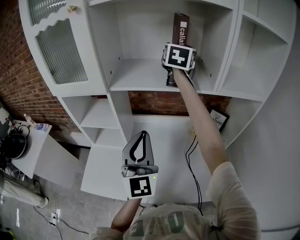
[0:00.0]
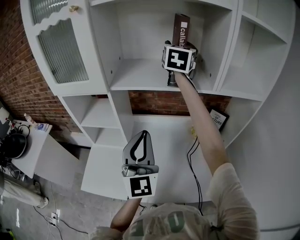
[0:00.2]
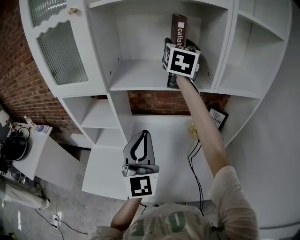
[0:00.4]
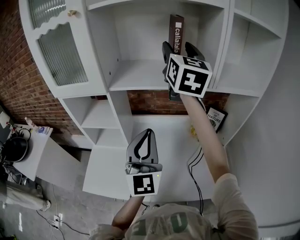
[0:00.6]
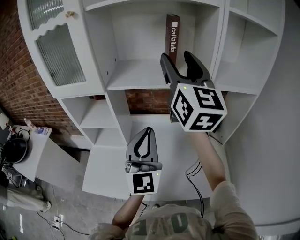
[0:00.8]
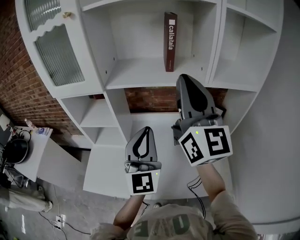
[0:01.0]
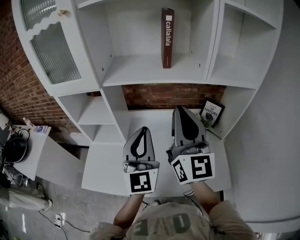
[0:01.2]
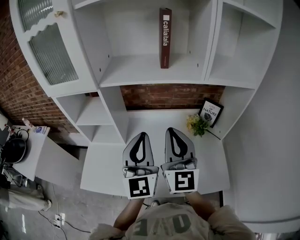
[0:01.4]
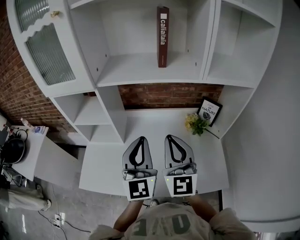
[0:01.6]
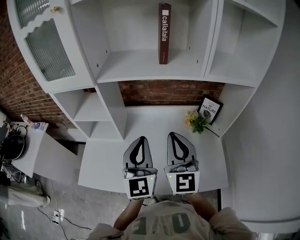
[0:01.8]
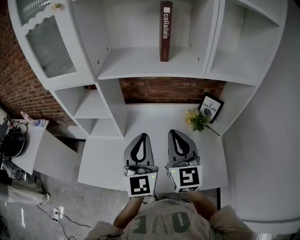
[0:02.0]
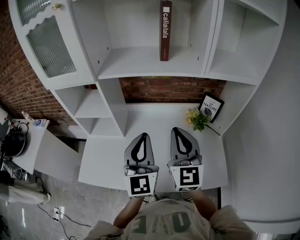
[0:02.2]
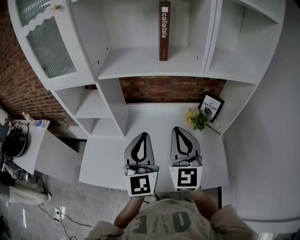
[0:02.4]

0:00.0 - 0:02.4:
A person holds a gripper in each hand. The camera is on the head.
0:00.0 - 0:01.2: The right gripper travels backward by approximately 30 cm, turns by roughly 30 degrees, and closes up.
0:01.2 - 0:02.4: The right gripper shifts about 10 cm downward.

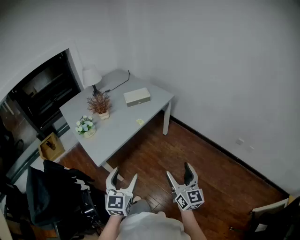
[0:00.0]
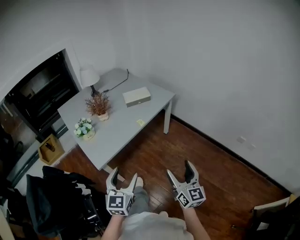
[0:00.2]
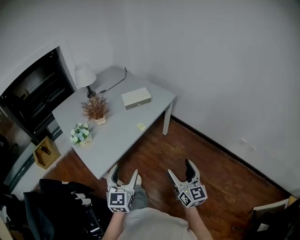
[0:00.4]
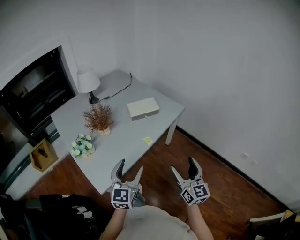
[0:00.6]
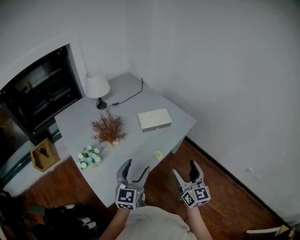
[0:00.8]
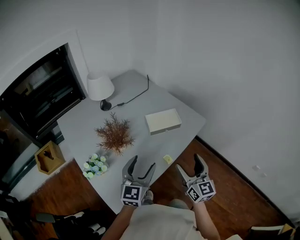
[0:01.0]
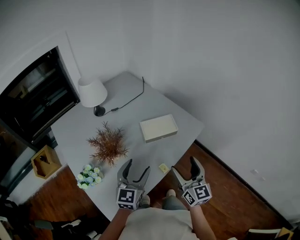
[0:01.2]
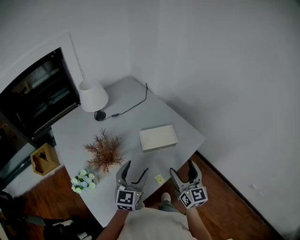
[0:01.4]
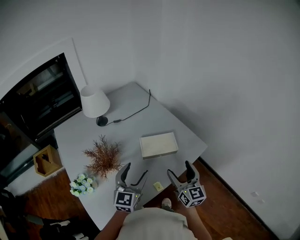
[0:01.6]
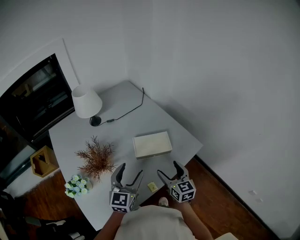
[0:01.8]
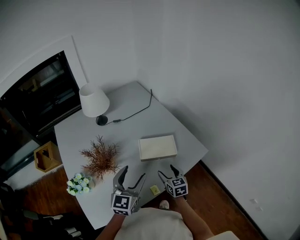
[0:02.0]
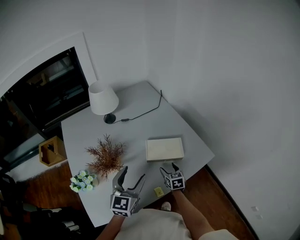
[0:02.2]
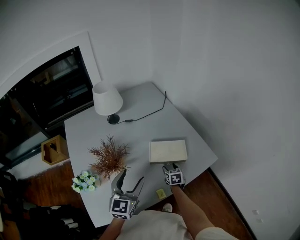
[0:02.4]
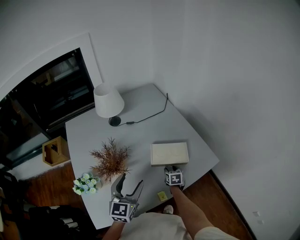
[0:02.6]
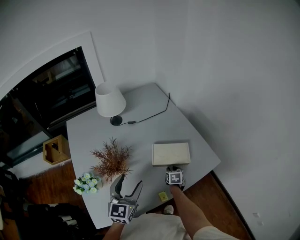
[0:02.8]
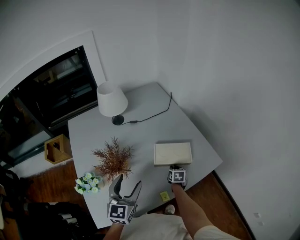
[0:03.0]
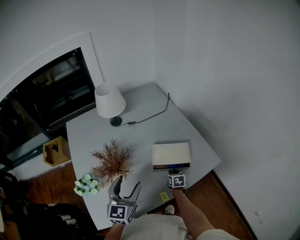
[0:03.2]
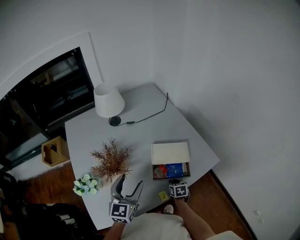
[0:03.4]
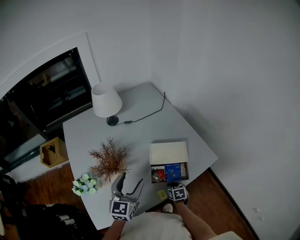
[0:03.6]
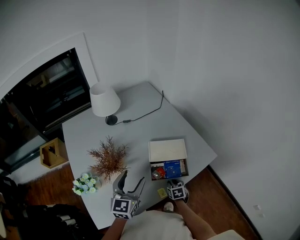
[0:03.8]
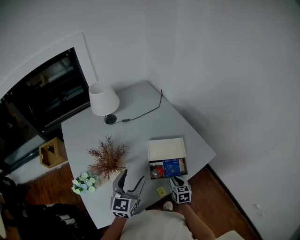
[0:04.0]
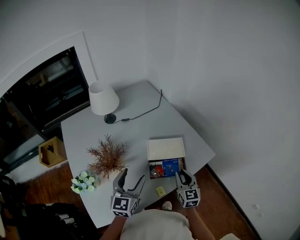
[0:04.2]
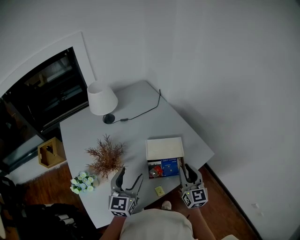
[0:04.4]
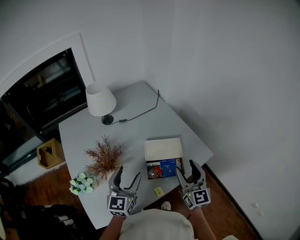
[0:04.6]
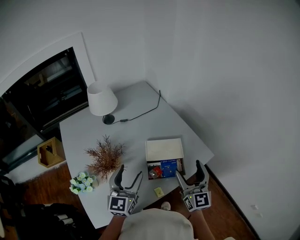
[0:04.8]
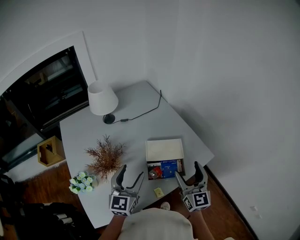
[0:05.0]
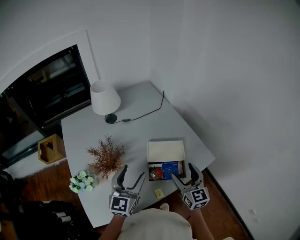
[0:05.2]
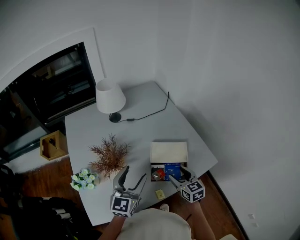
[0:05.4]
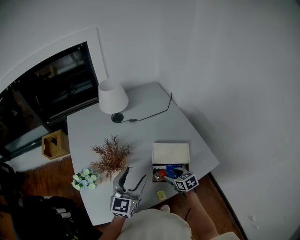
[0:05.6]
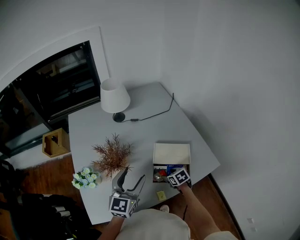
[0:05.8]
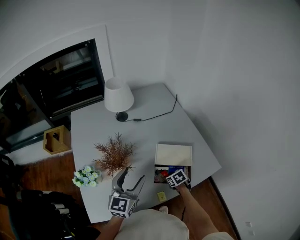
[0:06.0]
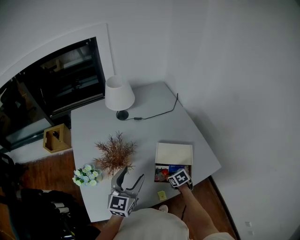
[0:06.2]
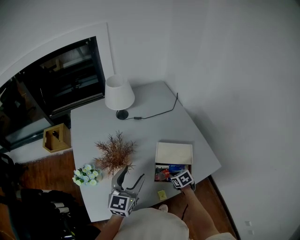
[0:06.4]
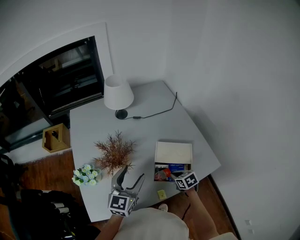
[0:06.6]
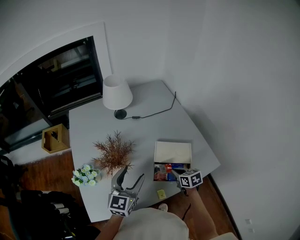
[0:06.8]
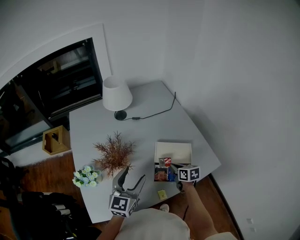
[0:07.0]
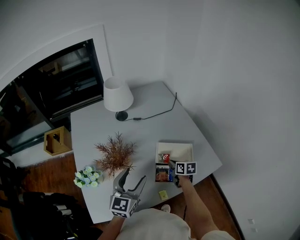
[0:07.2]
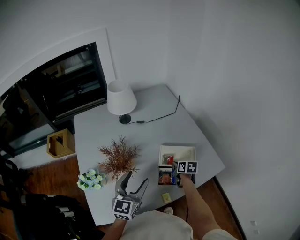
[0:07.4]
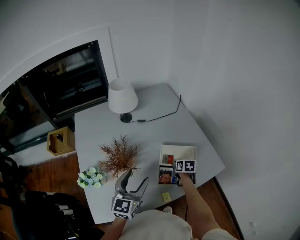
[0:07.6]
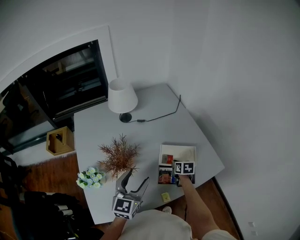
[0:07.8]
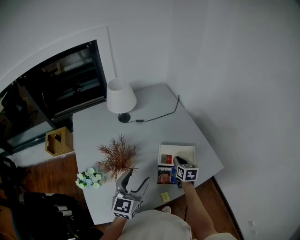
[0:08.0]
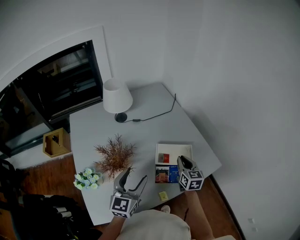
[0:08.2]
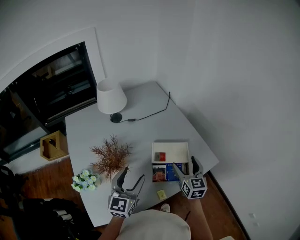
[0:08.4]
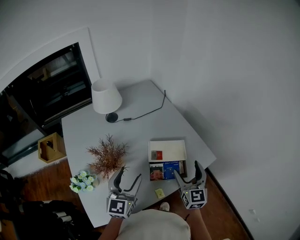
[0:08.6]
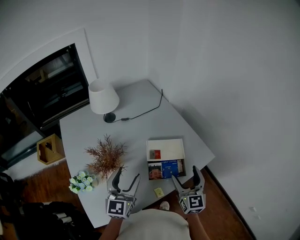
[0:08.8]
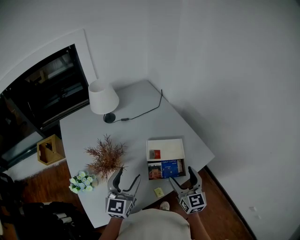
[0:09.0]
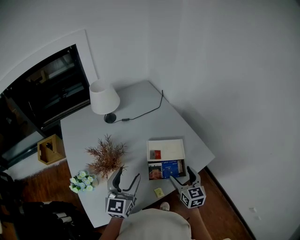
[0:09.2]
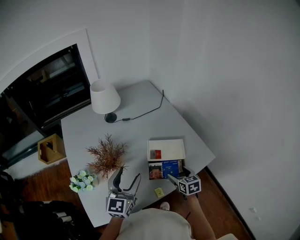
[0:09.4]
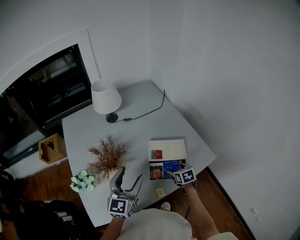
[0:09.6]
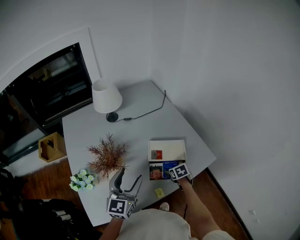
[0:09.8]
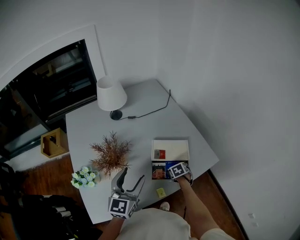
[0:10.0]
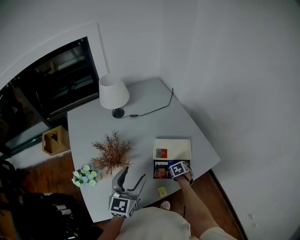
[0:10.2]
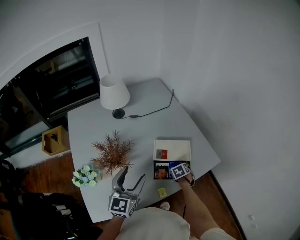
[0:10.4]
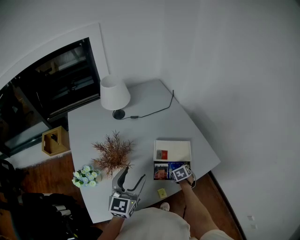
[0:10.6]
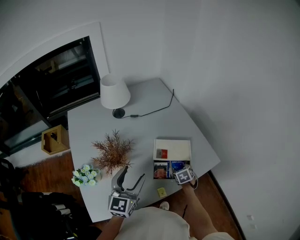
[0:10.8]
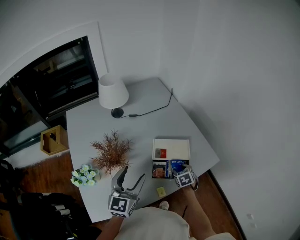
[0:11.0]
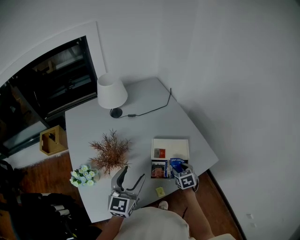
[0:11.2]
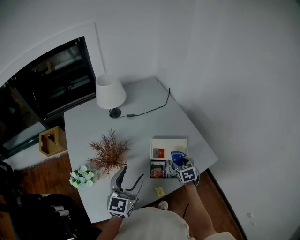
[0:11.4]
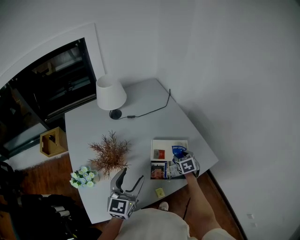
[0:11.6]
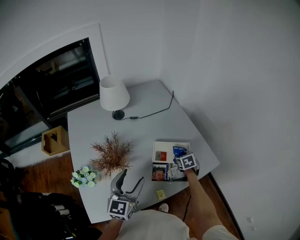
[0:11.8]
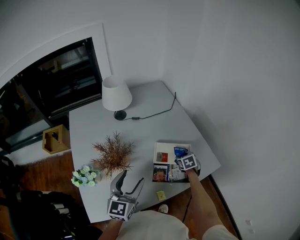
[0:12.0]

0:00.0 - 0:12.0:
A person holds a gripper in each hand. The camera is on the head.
0:00.0 - 0:01.6: The two grippers travel together, forward, approximately 60 cm.
0:01.6 - 0:03.0: The left gripper moves to the left, approximately 5 cm. Meanwhile the right gripper shifts roughly 35 cm downward and forward, tips its fingers downward by about 50 degrees, and closes.
0:03.0 - 0:04.4: The right gripper is displaced upward by roughly 30 cm, and tips its fingers upward by approximately 50 degrees.
0:04.4 - 0:06.0: The right gripper heads downward, covering some 25 cm, angles its fingers downward, by approximately 60 degrees, and opens, then closes again.
0:06.0 - 0:07.6: The right gripper heads forward, covering about 10 cm, changes its angle by approximately 40 degrees, and closes up.
0:07.6 - 0:09.0: The right gripper travels upward and backward by roughly 25 cm, angles its fingers upward, by some 40 degrees, and opens up.
0:09.0 - 0:10.4: The right gripper is displaced downward by approximately 30 cm, and tips its fingers downward by some 60 degrees.
0:10.4 - 0:12.0: The right gripper heads forward and upward, covering about 10 cm.

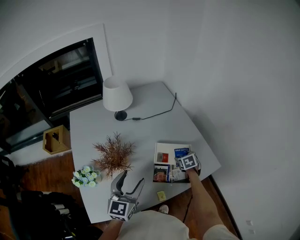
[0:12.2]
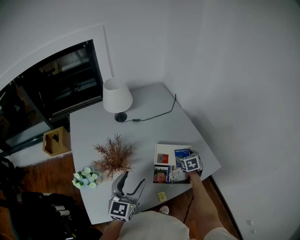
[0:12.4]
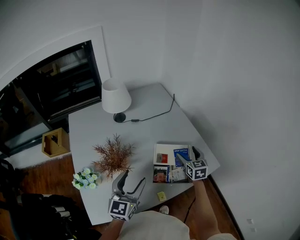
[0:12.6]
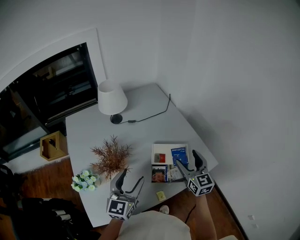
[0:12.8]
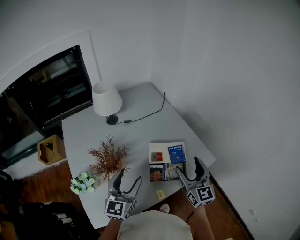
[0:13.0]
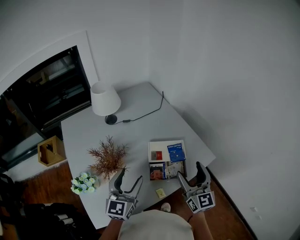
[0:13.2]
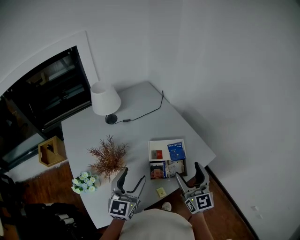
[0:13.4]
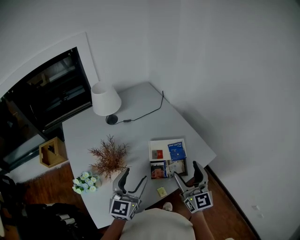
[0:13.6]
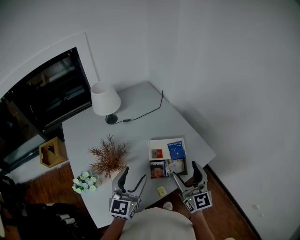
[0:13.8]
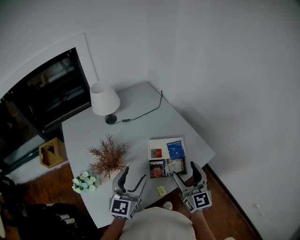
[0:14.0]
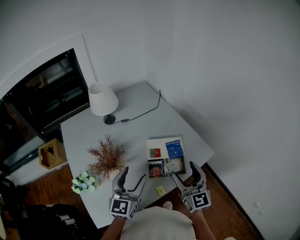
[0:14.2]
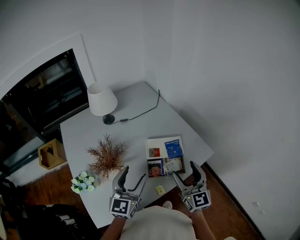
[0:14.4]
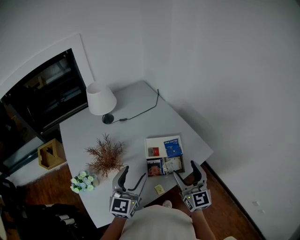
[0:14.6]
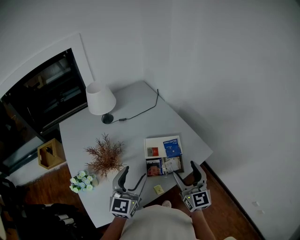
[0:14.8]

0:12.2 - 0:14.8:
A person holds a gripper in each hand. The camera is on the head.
0:12.2 - 0:13.4: The right gripper shifts about 35 cm upward and backward, and angles its fingers upward, by about 60 degrees.
0:13.4 - 0:14.8: There are only small adjustments of the grippers.

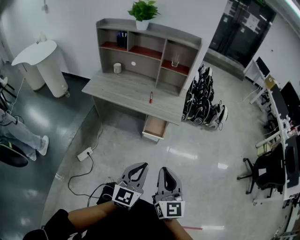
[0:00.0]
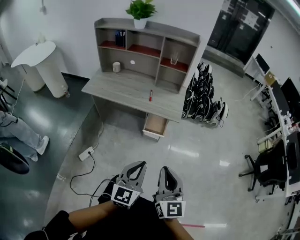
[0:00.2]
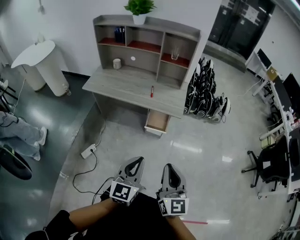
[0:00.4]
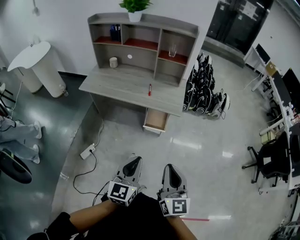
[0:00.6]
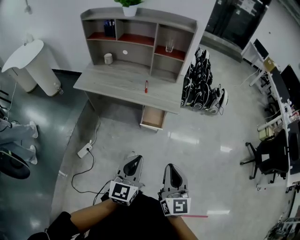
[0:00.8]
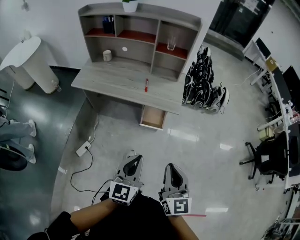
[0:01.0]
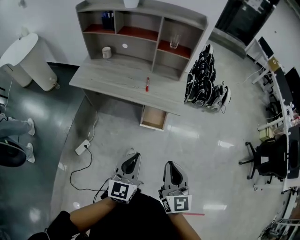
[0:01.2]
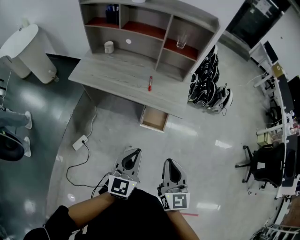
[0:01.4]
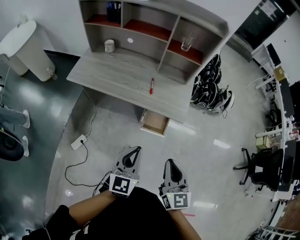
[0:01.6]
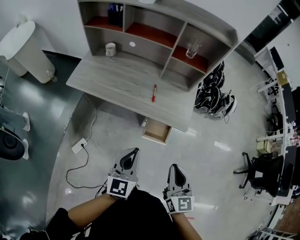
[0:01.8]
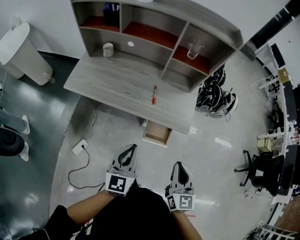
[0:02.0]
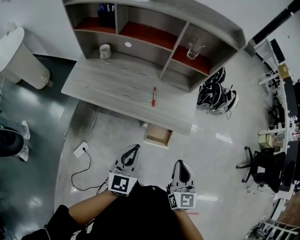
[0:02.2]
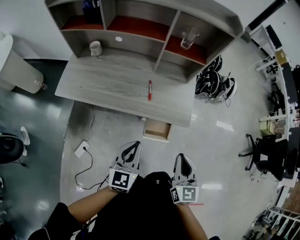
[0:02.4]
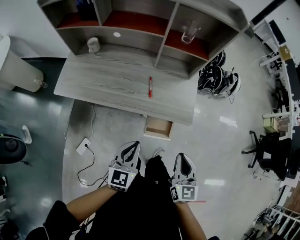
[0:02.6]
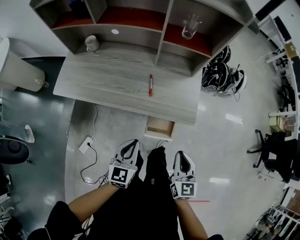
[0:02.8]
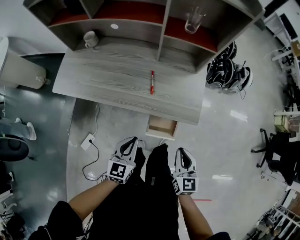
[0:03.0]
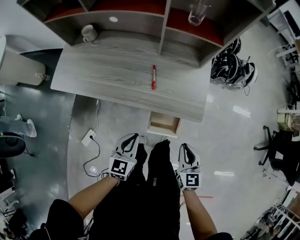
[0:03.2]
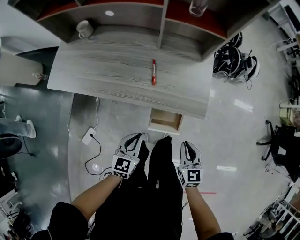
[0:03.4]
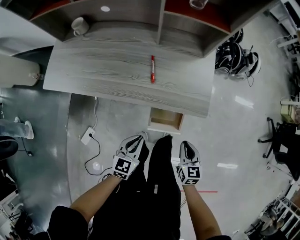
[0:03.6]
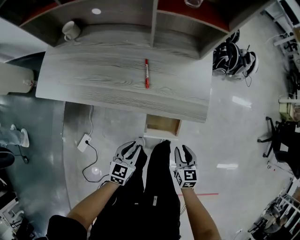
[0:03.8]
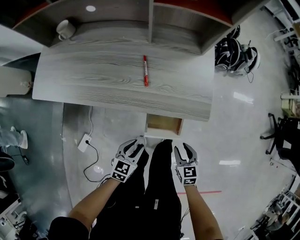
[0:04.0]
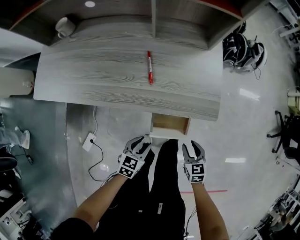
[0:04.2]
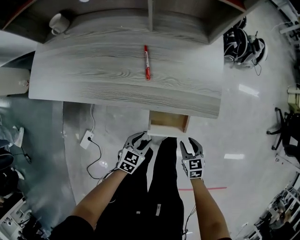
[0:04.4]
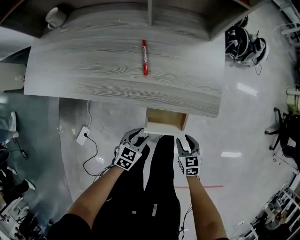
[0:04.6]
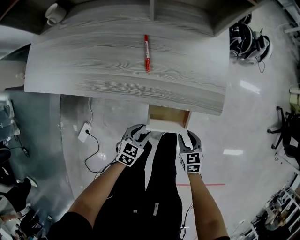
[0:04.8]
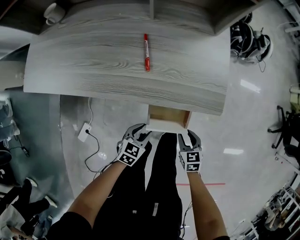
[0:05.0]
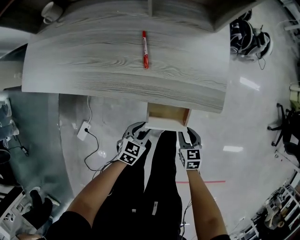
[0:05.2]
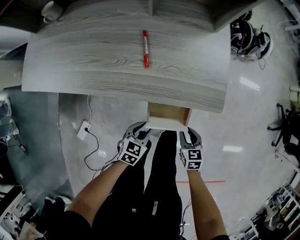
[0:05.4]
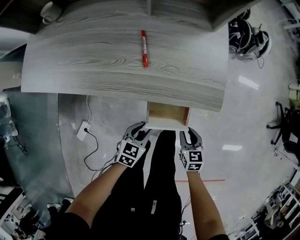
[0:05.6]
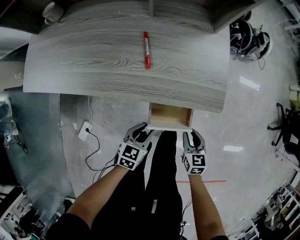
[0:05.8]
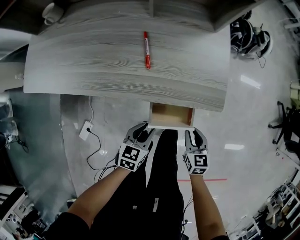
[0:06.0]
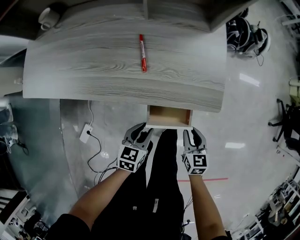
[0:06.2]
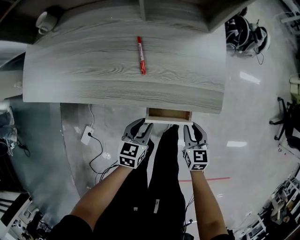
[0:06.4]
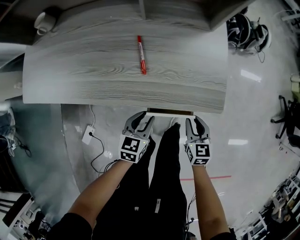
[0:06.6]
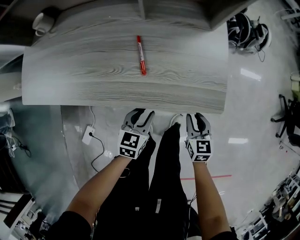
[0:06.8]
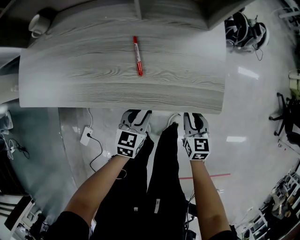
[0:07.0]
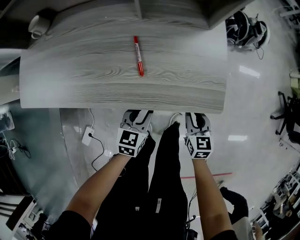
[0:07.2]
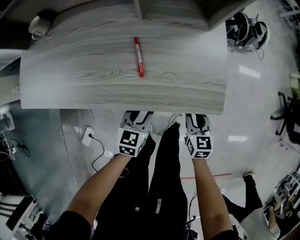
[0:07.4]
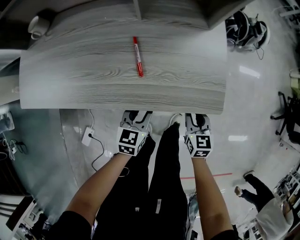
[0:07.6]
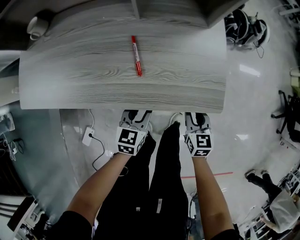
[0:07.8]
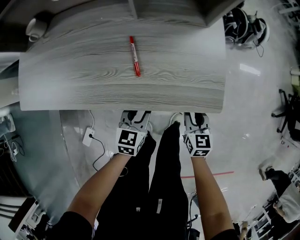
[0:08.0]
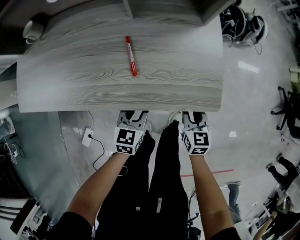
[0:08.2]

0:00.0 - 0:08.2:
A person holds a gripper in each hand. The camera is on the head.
0:00.0 - 0:01.6: The grippers both shift forward by some 20 cm.
0:01.6 - 0:03.2: Both grippers move downward and forward, roughly 25 cm.
0:03.2 - 0:05.0: Both grippers move downward, about 30 cm. The right gripper rotates some 30 degrees, and opens up; the left gripper changes its angle by about 30 degrees, and opens.
0:05.0 - 0:06.6: The grippers both shift forward and upward by approximately 10 cm.
0:06.6 - 0:08.2: The grippers both shift forward by approximately 5 cm.
